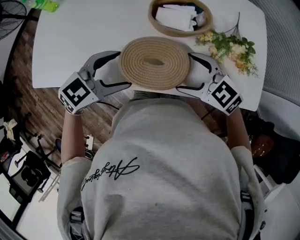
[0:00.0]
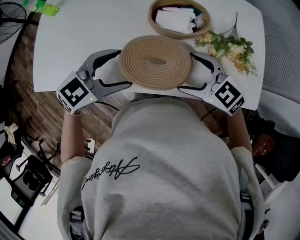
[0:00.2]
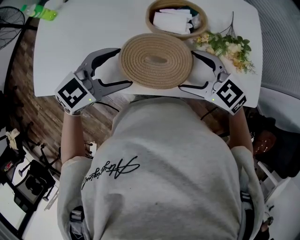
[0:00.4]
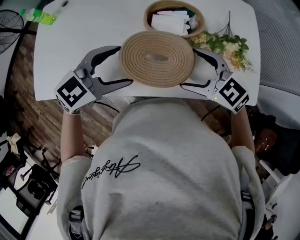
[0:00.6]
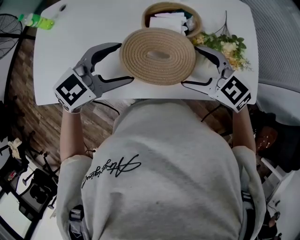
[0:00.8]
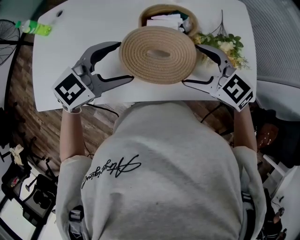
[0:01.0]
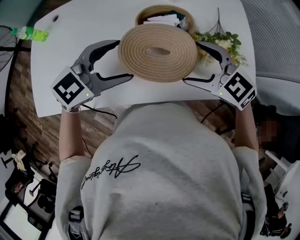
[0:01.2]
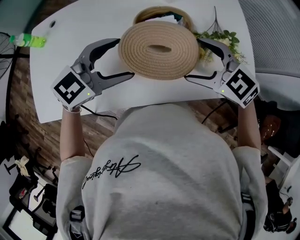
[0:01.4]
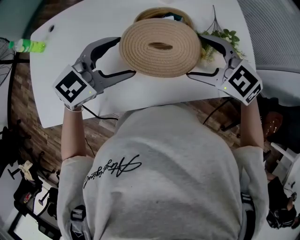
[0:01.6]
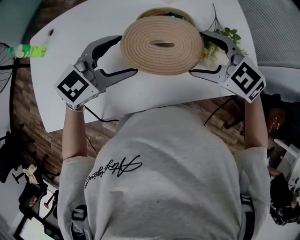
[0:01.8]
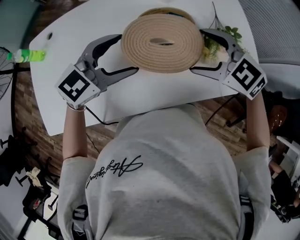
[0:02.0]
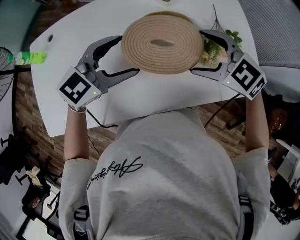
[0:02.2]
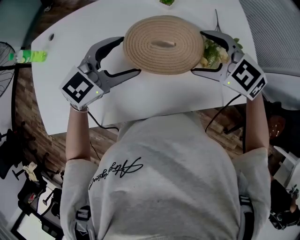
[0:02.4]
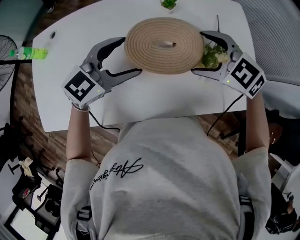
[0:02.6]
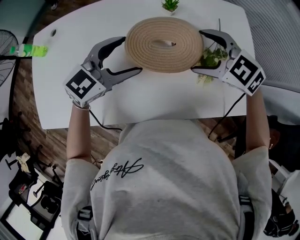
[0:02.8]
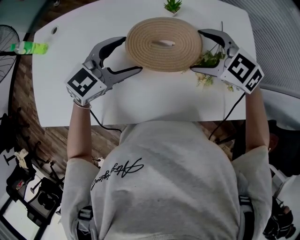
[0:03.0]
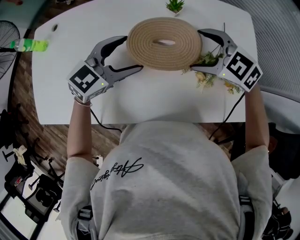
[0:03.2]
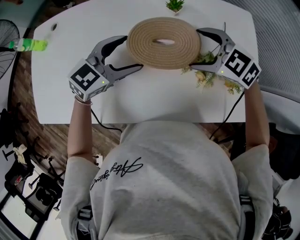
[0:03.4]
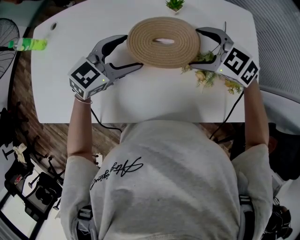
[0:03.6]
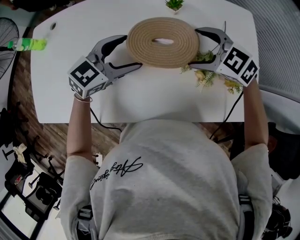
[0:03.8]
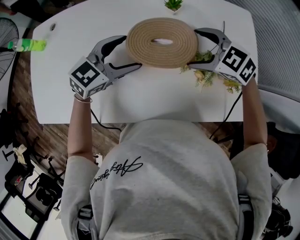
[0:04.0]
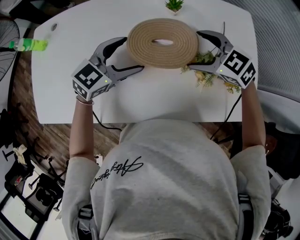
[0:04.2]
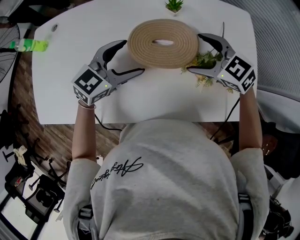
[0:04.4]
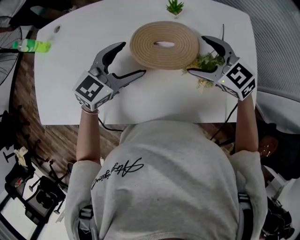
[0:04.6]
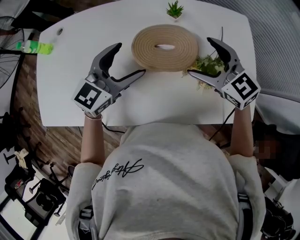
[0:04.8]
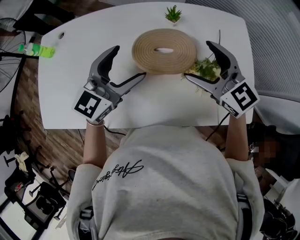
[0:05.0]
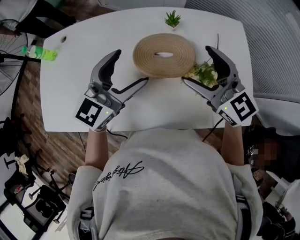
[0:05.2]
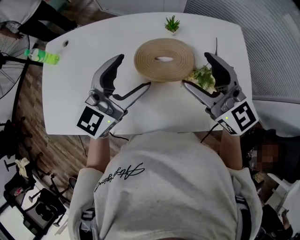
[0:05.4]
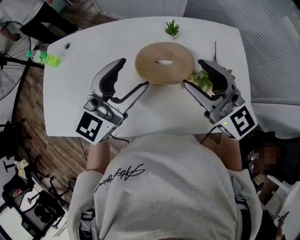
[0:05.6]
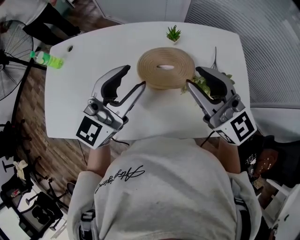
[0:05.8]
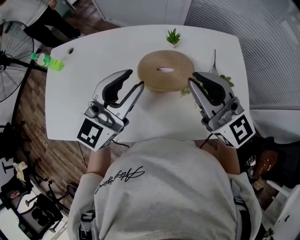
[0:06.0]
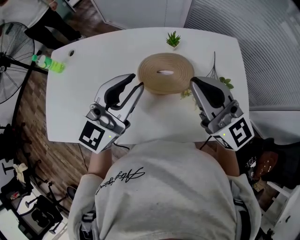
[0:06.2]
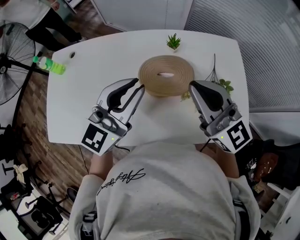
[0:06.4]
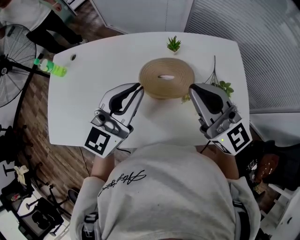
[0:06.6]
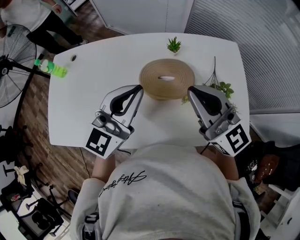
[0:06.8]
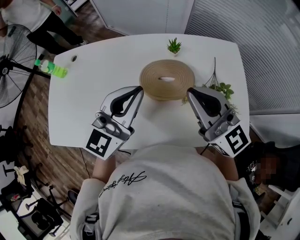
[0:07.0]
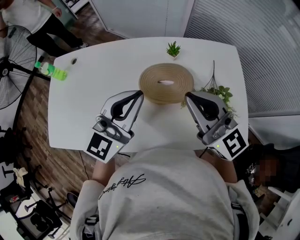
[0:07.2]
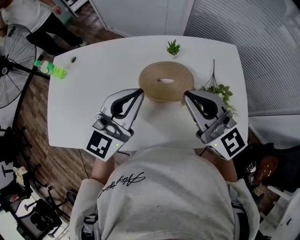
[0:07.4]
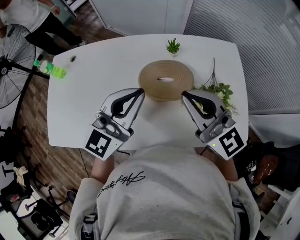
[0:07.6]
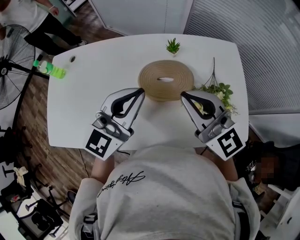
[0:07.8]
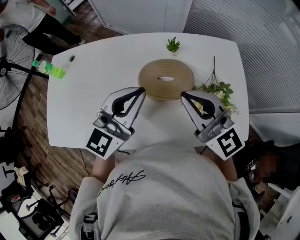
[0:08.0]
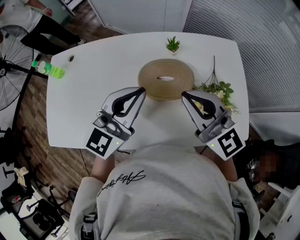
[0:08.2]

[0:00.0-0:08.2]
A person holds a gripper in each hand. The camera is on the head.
0:00.0 to 0:01.6: The left gripper shifts by approximately 15 cm. Meanwhile the right gripper changes place by some 10 cm.
0:01.6 to 0:03.2: Both grippers travel together forward, some 10 cm.
0:03.2 to 0:05.0: The grippers both shift upward by approximately 5 cm. The right gripper changes its angle by some 30 degrees. The left gripper swivels approximately 20 degrees.
0:05.0 to 0:06.6: Both grippers travel together upward, some 10 cm. The right gripper swivels about 20 degrees, and closes. Meanwhile the left gripper closes its fingers.
0:06.6 to 0:08.2: There are only small adjustments of the grippers.

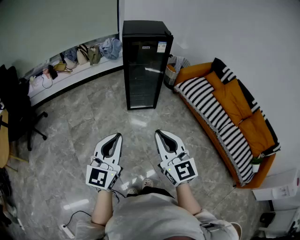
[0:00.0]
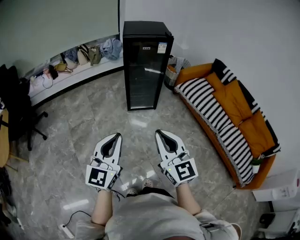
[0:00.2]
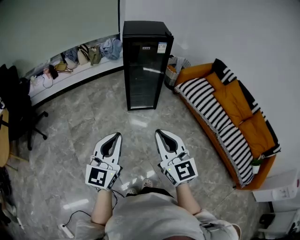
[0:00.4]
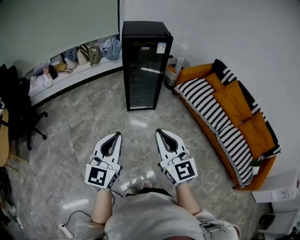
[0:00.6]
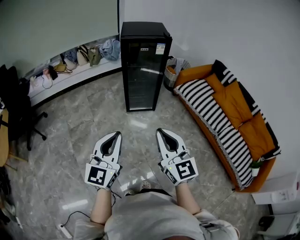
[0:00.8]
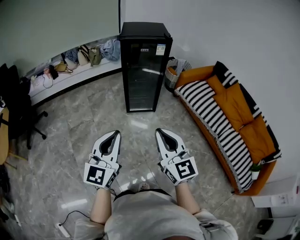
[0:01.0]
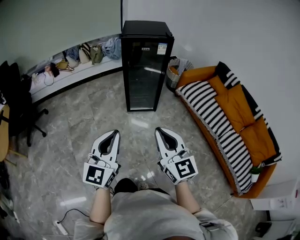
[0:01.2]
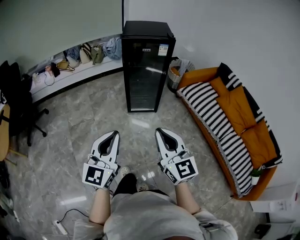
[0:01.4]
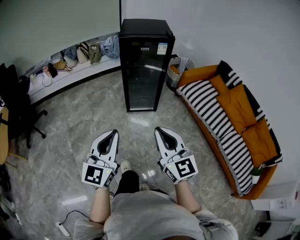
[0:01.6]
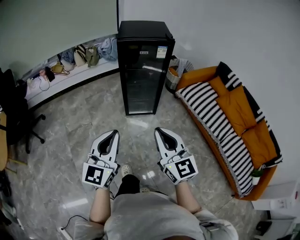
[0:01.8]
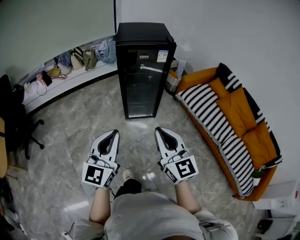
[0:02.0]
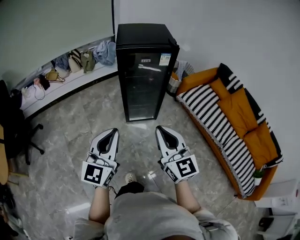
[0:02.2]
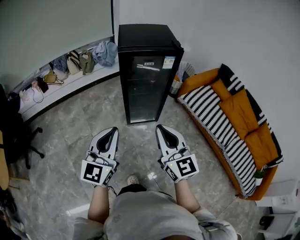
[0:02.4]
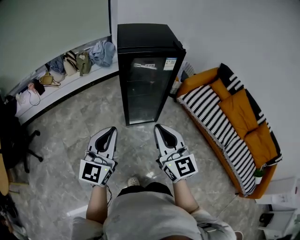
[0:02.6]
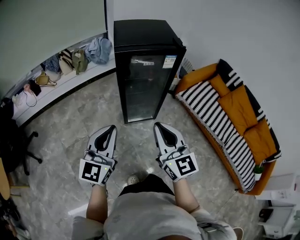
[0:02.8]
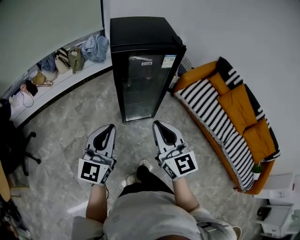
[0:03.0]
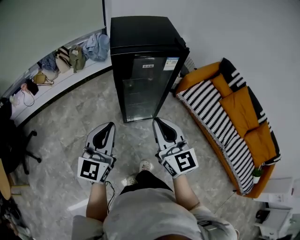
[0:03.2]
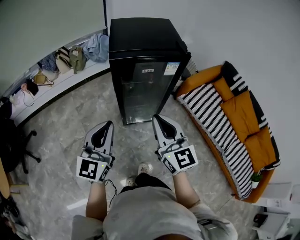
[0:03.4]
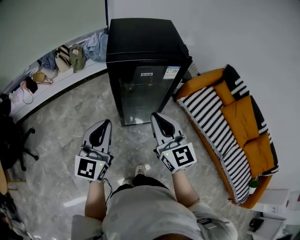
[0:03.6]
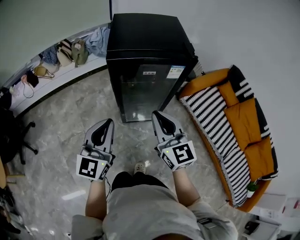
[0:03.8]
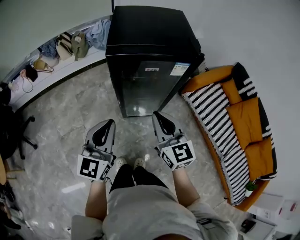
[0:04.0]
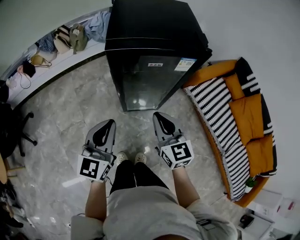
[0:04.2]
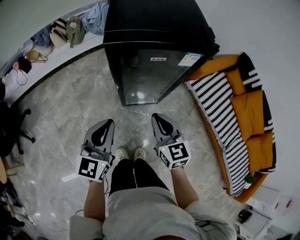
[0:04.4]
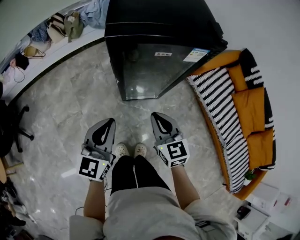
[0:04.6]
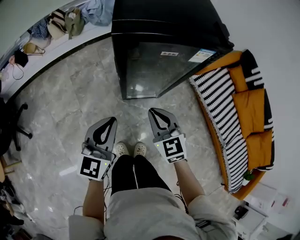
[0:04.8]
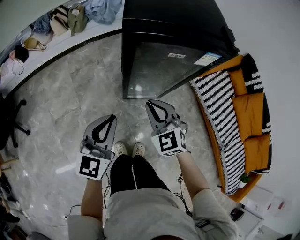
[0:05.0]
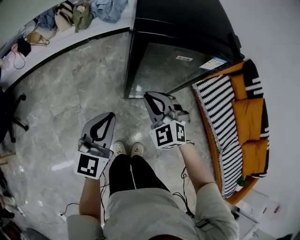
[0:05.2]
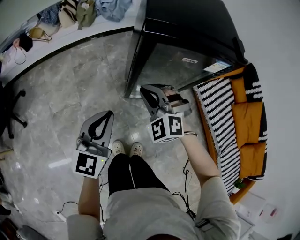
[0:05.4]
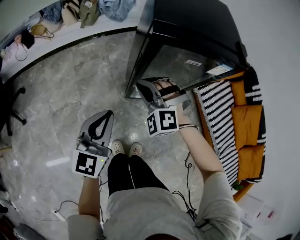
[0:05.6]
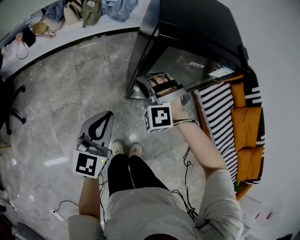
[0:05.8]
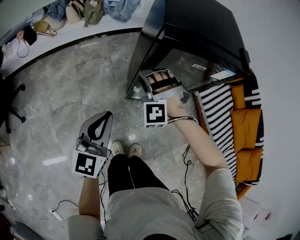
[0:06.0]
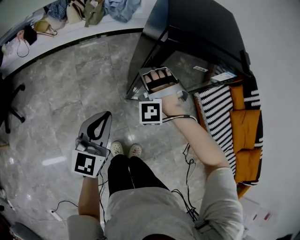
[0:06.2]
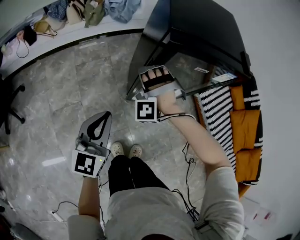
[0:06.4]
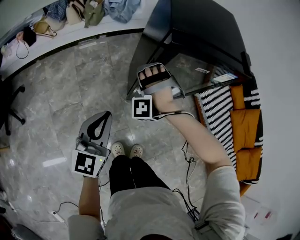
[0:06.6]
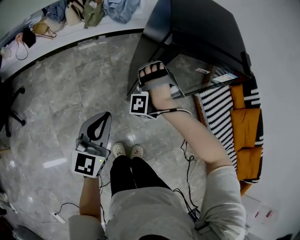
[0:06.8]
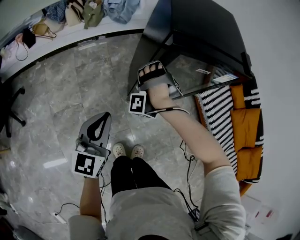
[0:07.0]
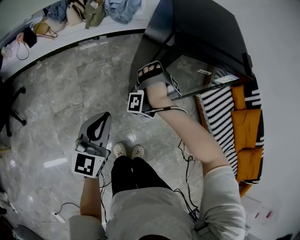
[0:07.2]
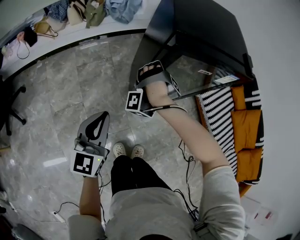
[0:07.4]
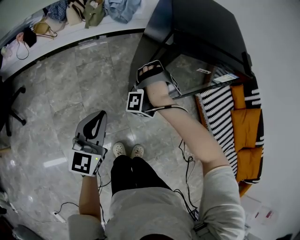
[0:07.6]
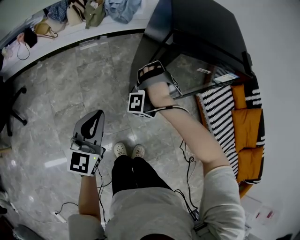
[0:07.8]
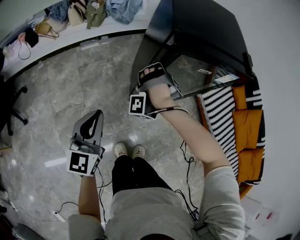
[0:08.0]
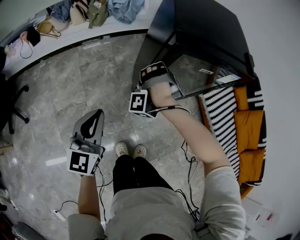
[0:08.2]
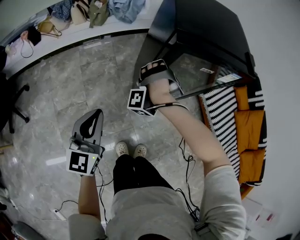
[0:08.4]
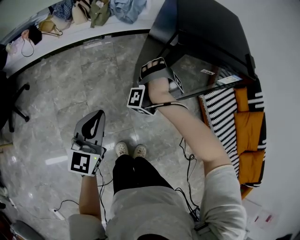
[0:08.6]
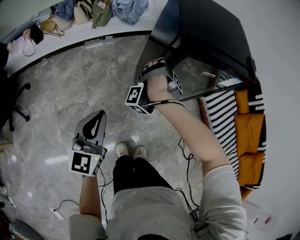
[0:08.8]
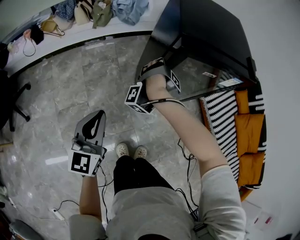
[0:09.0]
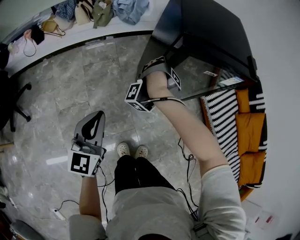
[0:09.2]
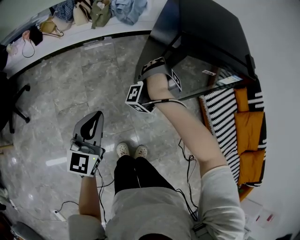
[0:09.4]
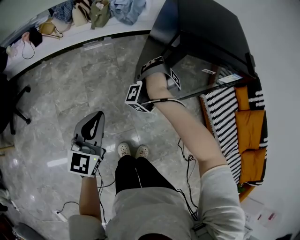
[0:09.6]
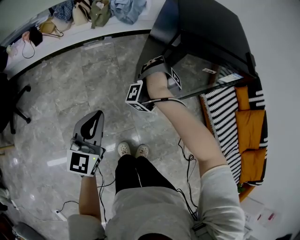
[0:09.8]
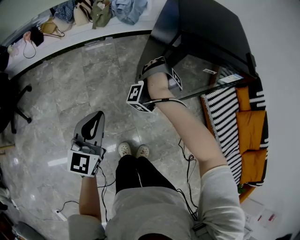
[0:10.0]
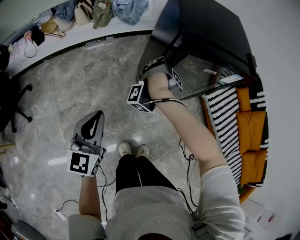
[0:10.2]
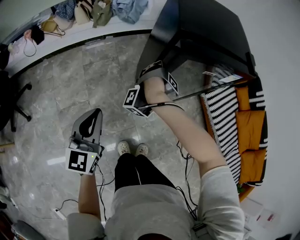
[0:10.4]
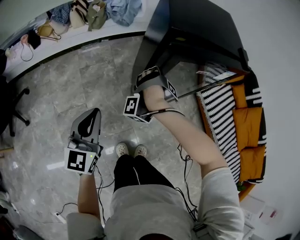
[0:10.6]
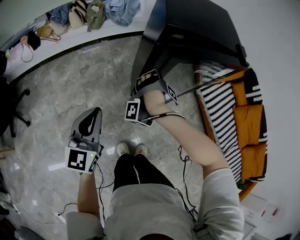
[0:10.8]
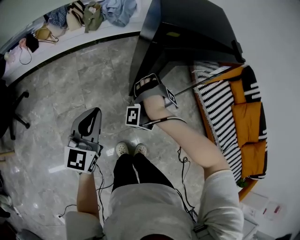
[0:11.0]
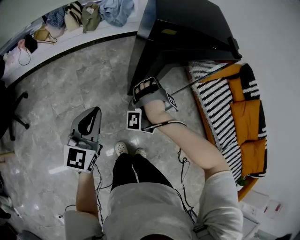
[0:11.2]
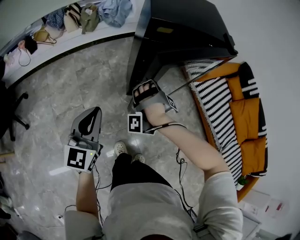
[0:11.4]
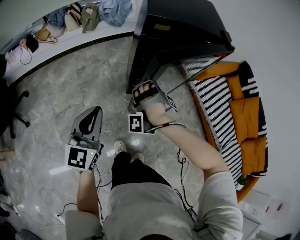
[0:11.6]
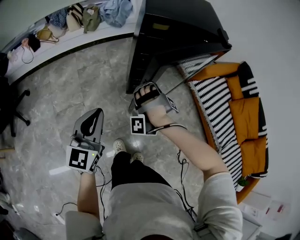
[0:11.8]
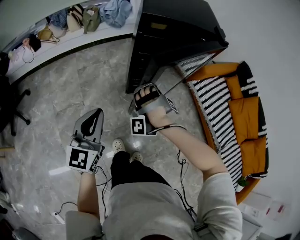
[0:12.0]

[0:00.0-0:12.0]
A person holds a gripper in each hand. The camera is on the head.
0:00.0 to 0:01.6: The left gripper moves roughly 10 cm.
0:01.6 to 0:03.0: The left gripper moves about 30 cm.
0:03.0 to 0:04.4: The left gripper changes place by roughly 15 cm.
0:04.4 to 0:06.0: The left gripper moves approximately 15 cm.
0:10.4 to 0:12.0: The left gripper shifts by about 15 cm.

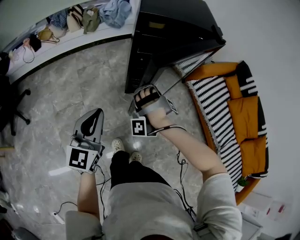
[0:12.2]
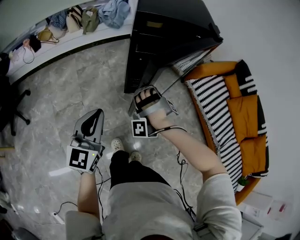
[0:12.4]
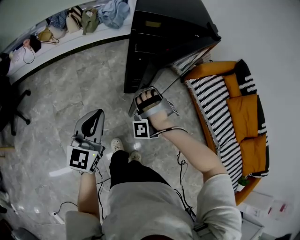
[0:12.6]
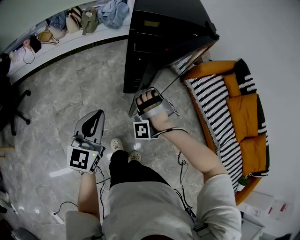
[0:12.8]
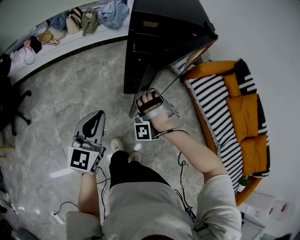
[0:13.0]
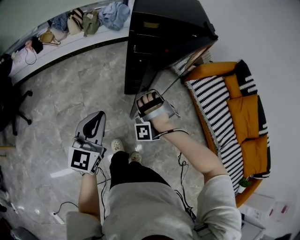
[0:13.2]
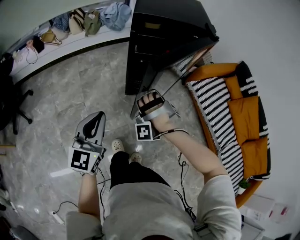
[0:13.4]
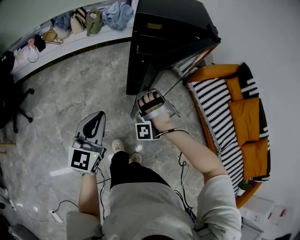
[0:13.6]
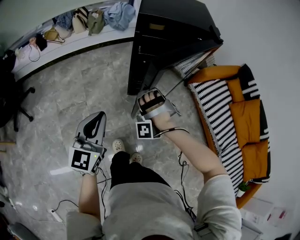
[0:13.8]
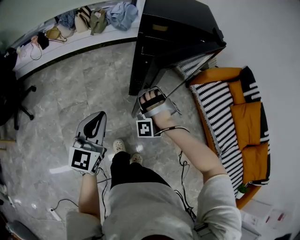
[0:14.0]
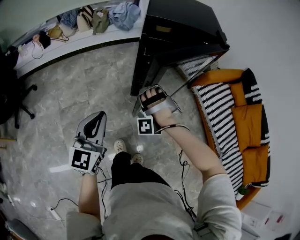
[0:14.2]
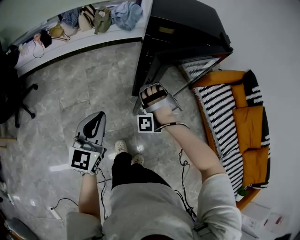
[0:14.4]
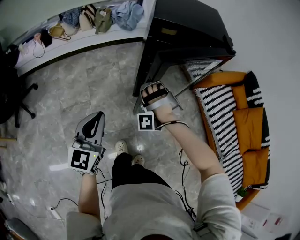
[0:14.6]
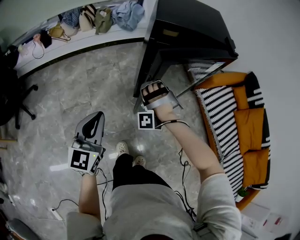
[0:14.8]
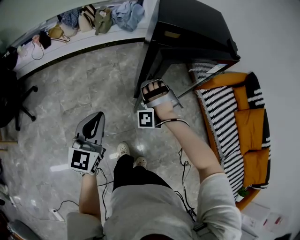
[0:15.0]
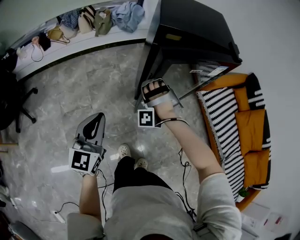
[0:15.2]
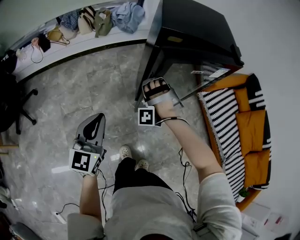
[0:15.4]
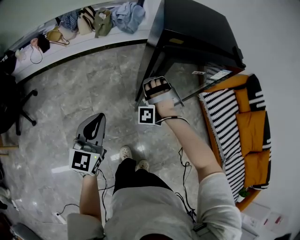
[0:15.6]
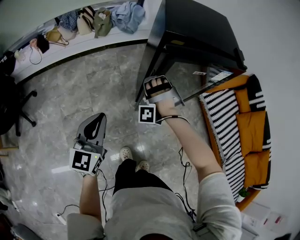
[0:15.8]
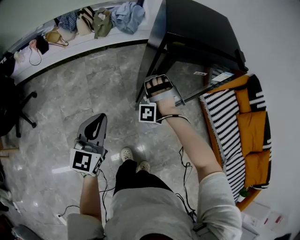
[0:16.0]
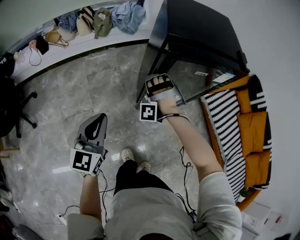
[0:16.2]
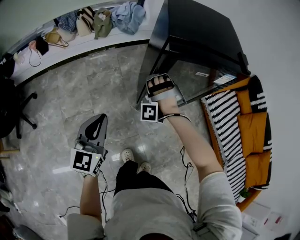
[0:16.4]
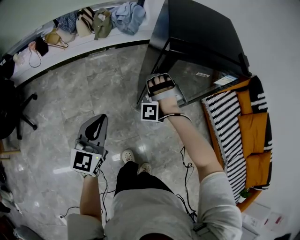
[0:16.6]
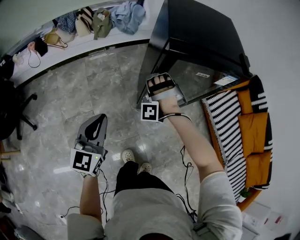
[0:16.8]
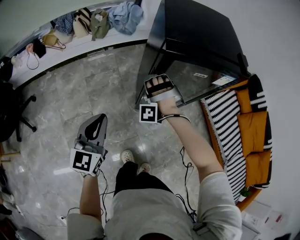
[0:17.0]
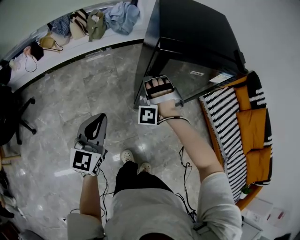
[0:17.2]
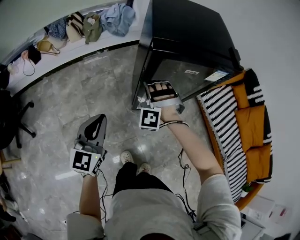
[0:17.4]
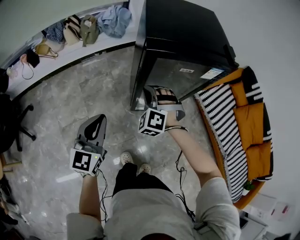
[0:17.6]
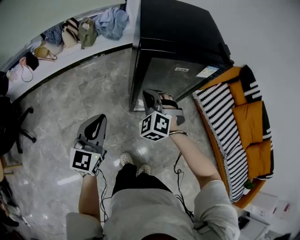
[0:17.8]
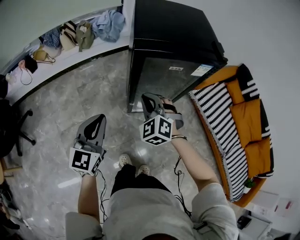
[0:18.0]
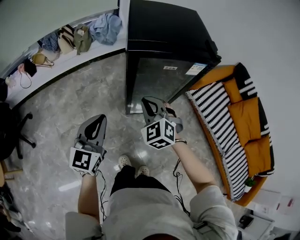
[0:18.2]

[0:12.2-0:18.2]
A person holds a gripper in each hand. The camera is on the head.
0:13.8 to 0:15.2: The left gripper moves about 10 cm.
0:15.2 to 0:16.6: The left gripper ends up some 10 cm from where it was.
0:16.6 to 0:18.2: The left gripper changes place by approximately 10 cm.
